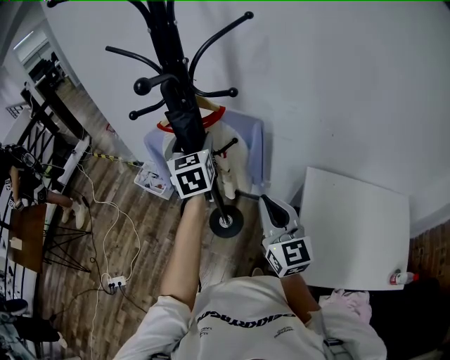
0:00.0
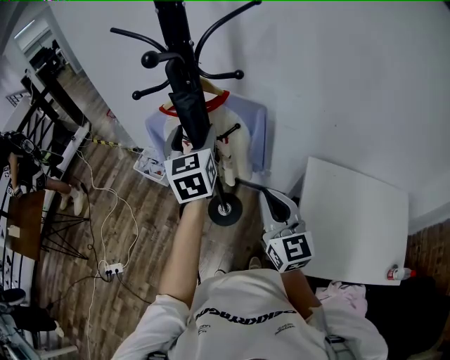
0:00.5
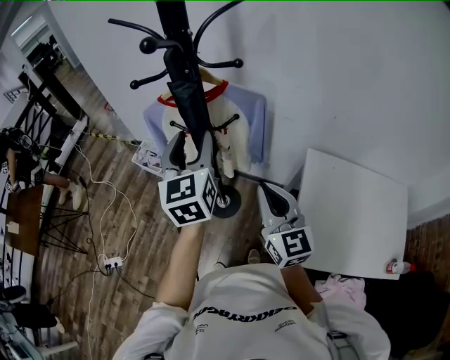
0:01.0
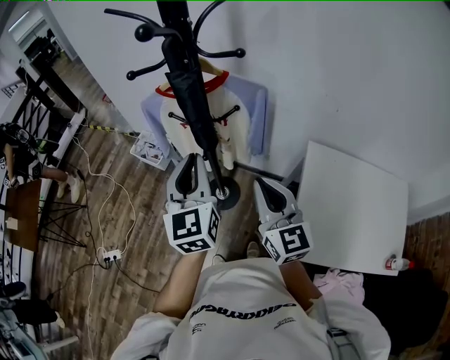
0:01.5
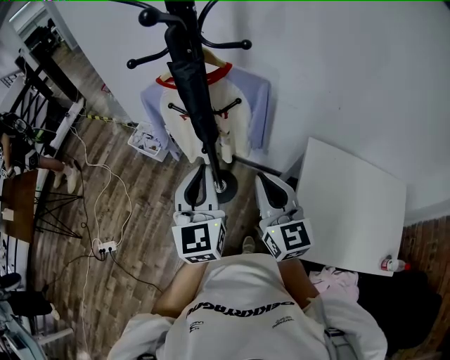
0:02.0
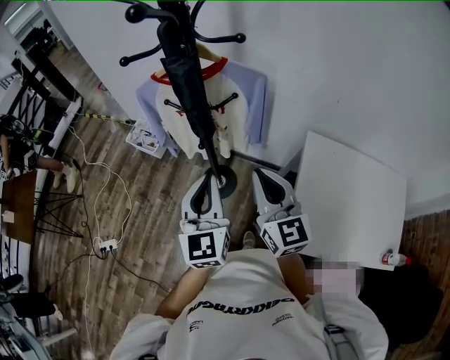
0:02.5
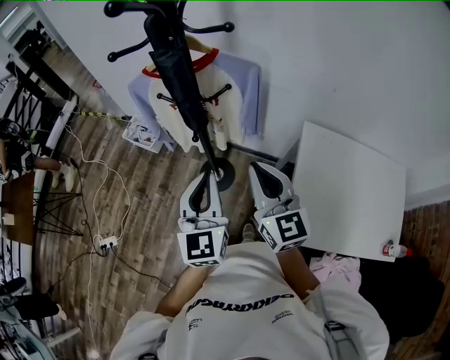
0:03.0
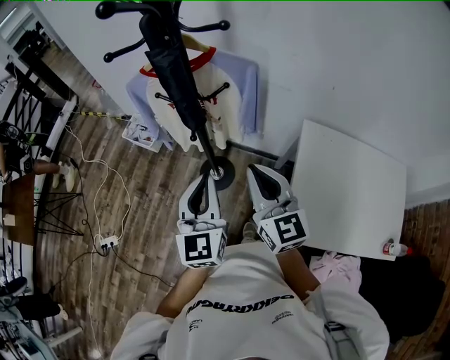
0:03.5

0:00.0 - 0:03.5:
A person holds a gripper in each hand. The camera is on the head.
0:00.0 - 0:02.0: The left gripper moves backward, roughly 20 cm, and closes up.
0:02.0 - 0:03.5: The left gripper ends up about 5 cm from where it was.

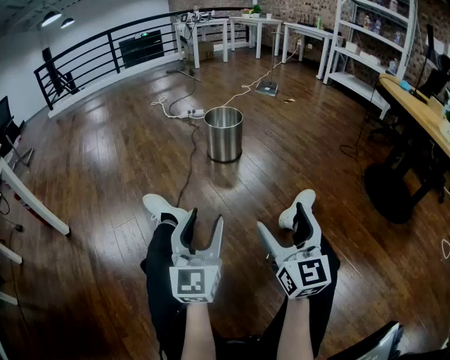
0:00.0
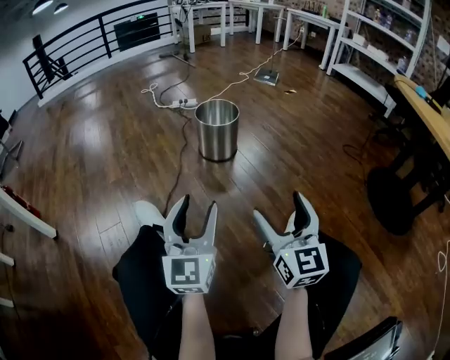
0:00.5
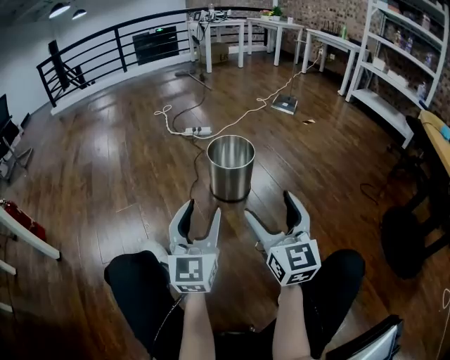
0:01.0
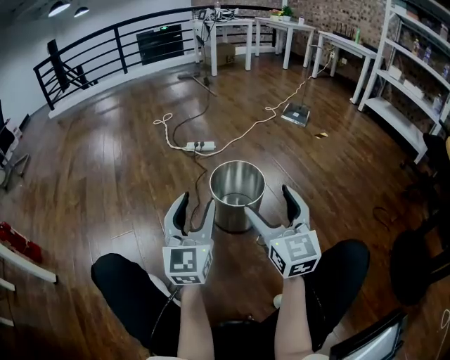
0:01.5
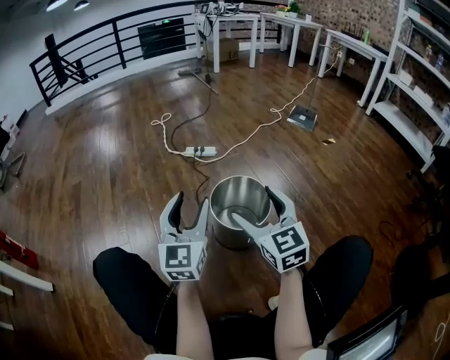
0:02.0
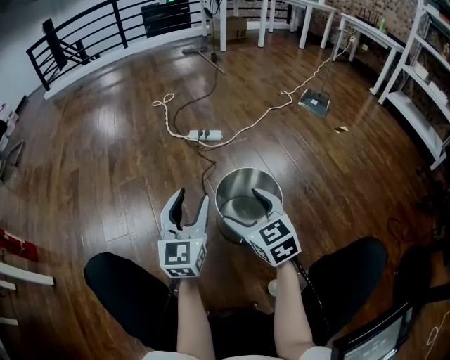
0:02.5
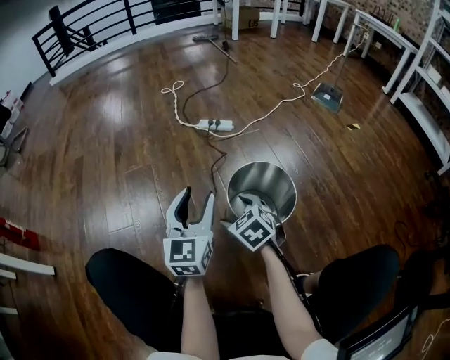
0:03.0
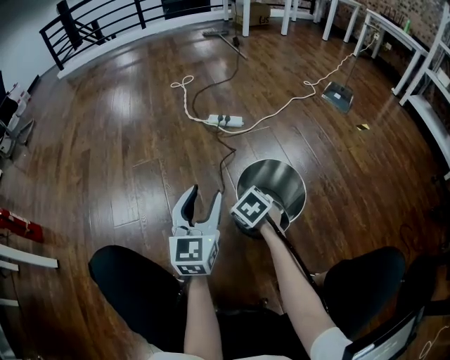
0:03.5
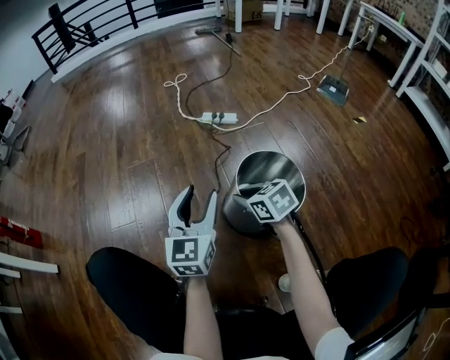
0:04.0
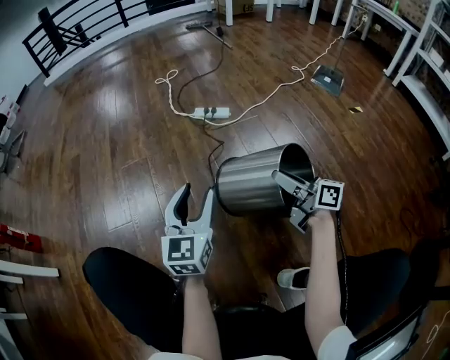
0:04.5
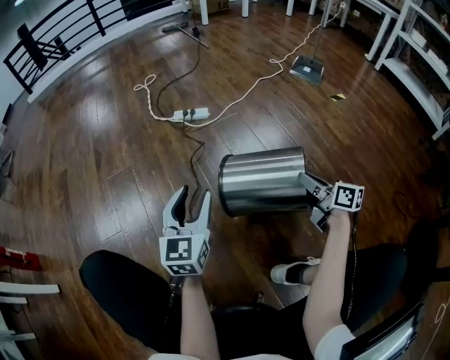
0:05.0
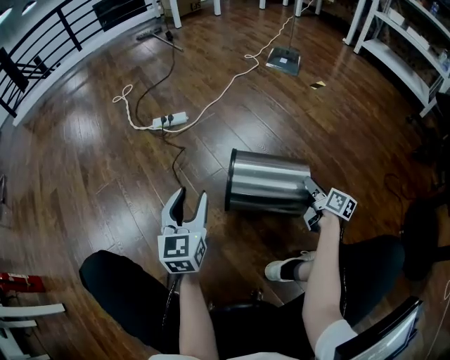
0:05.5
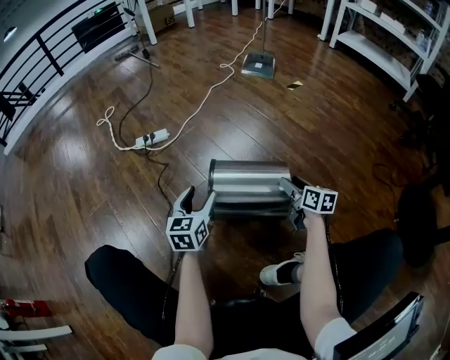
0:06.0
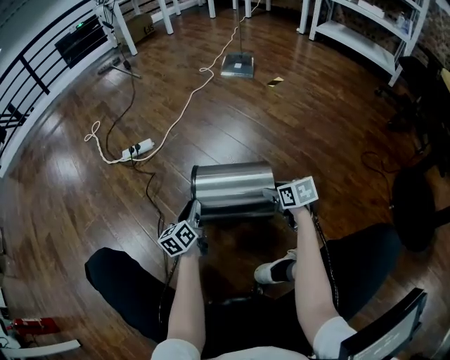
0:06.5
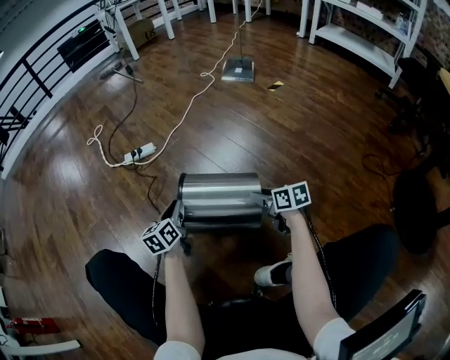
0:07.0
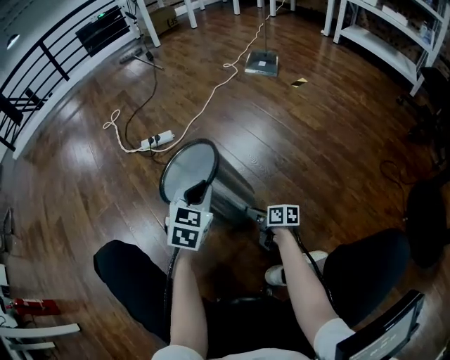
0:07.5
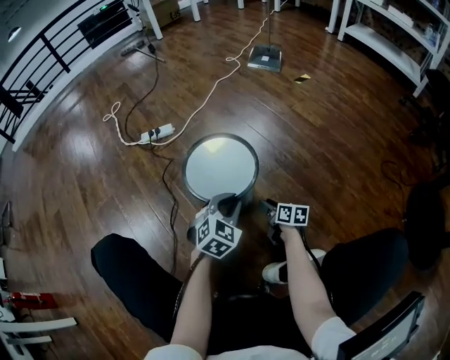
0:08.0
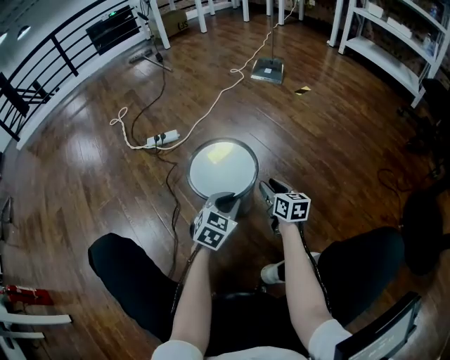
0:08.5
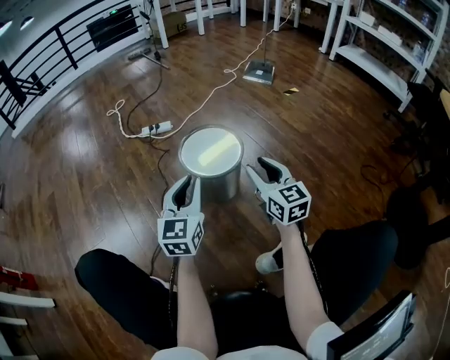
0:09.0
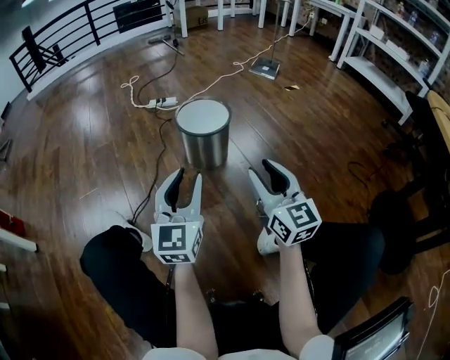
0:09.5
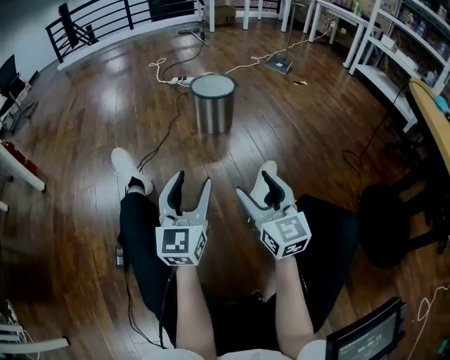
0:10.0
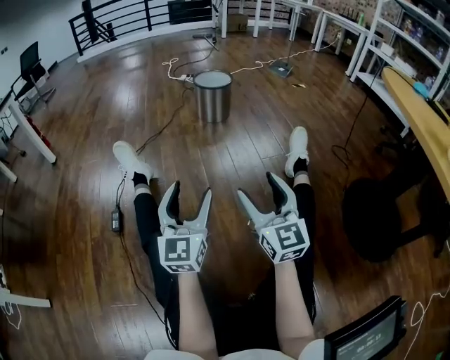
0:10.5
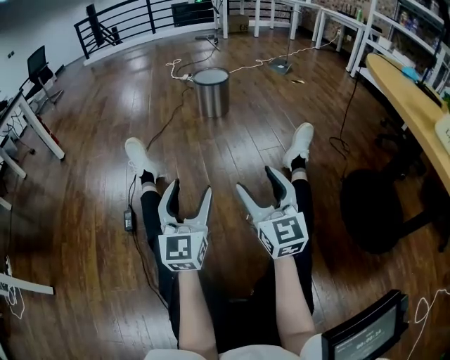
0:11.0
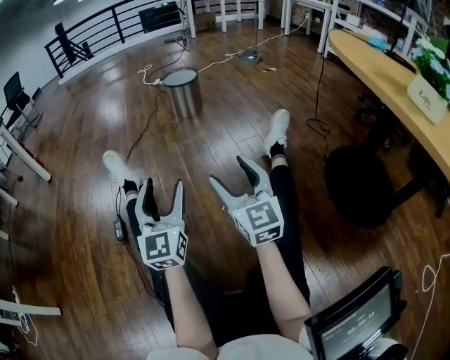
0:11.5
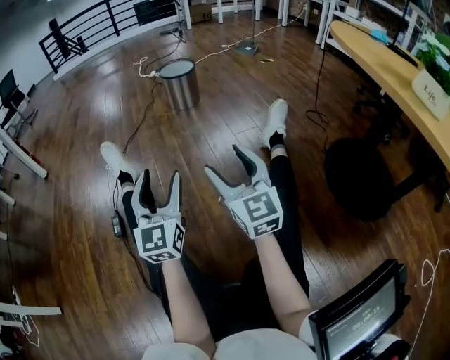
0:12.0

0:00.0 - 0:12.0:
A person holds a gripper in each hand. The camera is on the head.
0:00.0 - 0:02.0: The two grippers travel together, forward, roughly 60 cm. The right gripper swivels approximately 30 degrees.
0:02.0 - 0:04.0: The left gripper travels downward and forward by roughly 10 cm; the right gripper goes approximately 25 cm downward and forward, tips its fingers downward by some 30 degrees, and closes up.
0:04.0 - 0:06.0: The left gripper ends up about 25 cm from where it was, and turns by approximately 30 degrees; the right gripper ends up roughly 40 cm from where it was, turns by roughly 60 degrees, and opens.
0:06.0 - 0:08.0: The left gripper heads to the right and backward, covering about 10 cm, swivels about 40 degrees, and closes its fingers; the right gripper goes some 15 cm downward and to the left.
0:08.0 - 0:10.0: The pair of grippers is taken about 50 cm. The left gripper tilts its fingers approximately 40 degrees upward, and opens. The right gripper twists some 60 degrees counterclockwise, seen from behind, and opens its fingers.
0:10.0 - 0:12.0: The grippers both shift backward by some 25 cm.

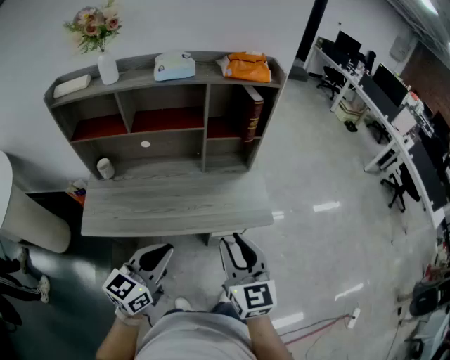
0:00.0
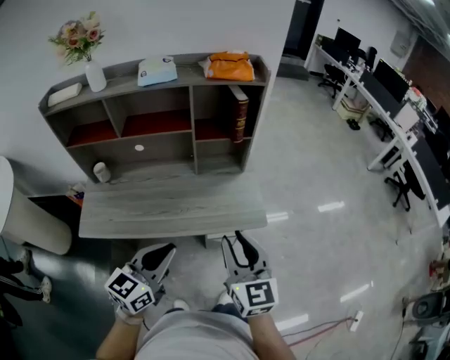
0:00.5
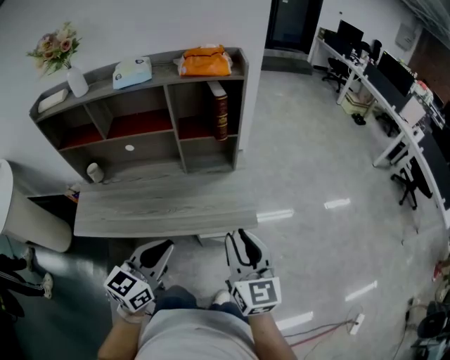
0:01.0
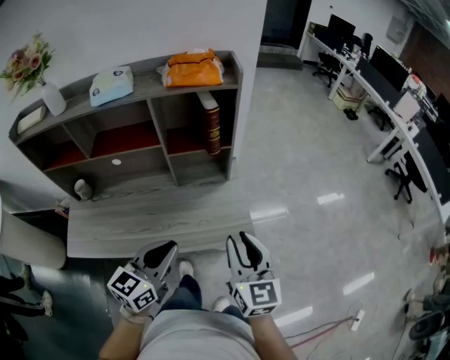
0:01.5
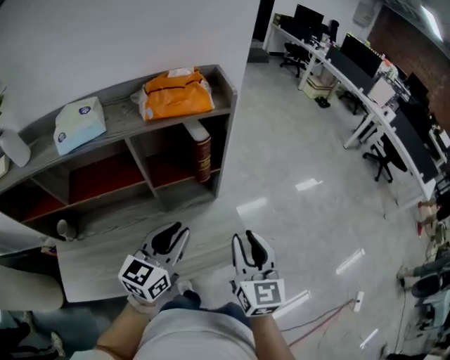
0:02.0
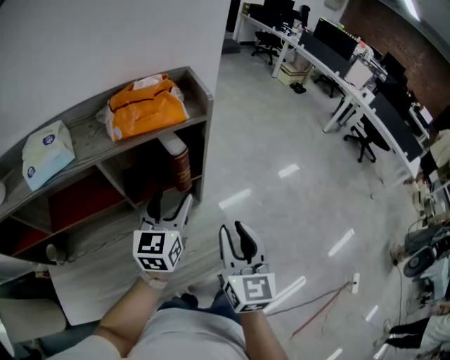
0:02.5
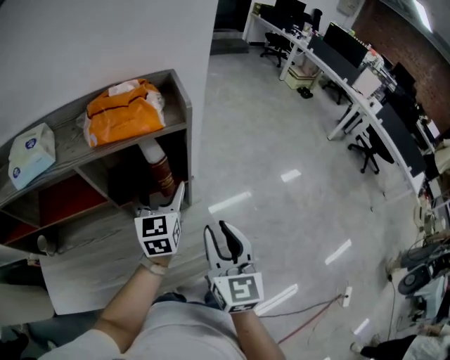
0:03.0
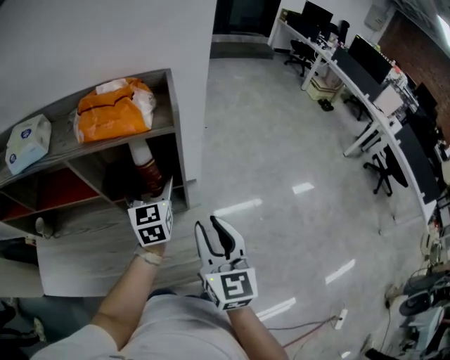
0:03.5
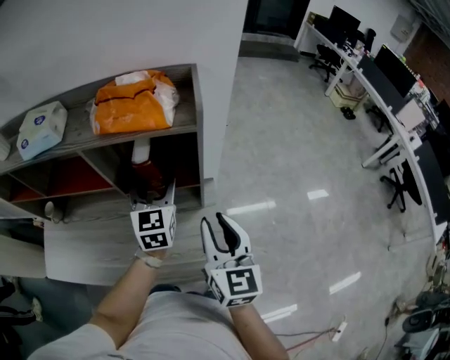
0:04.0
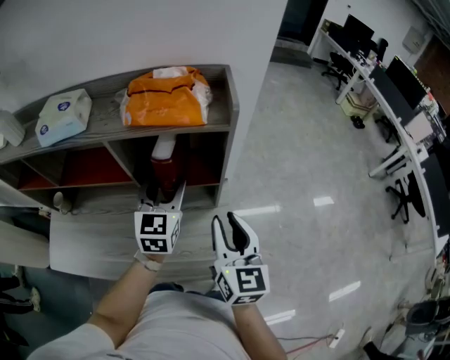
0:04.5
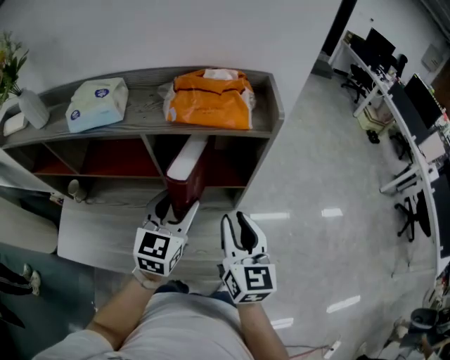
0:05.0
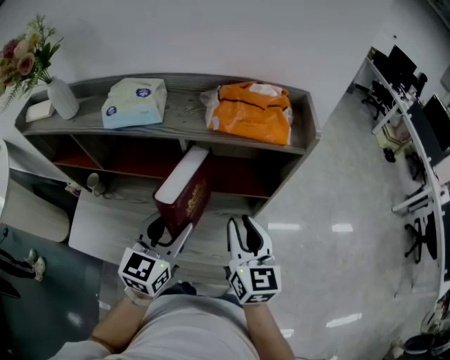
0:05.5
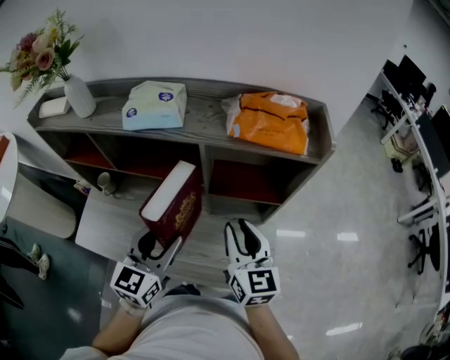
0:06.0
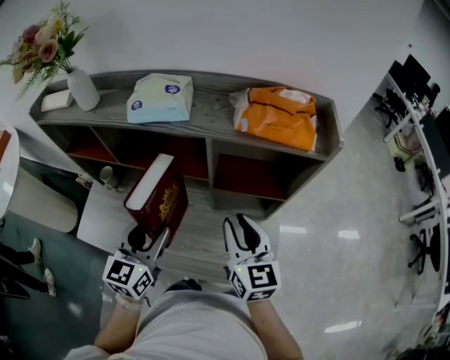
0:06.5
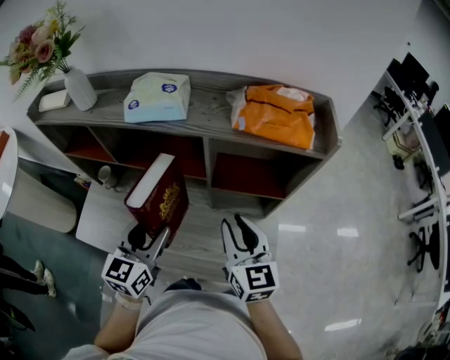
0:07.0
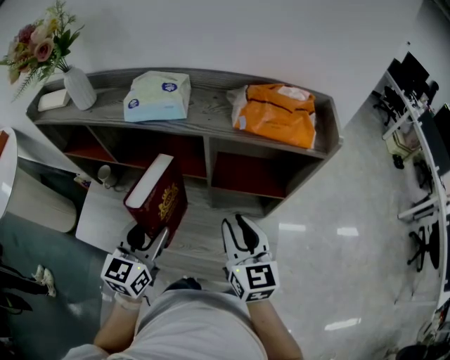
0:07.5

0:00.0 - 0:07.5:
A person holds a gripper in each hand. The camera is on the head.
0:00.0 - 0:02.0: The right gripper shifts approximately 30 cm forward and to the right; the left gripper is displaced forward by approximately 35 cm.
0:02.0 - 0:04.0: The right gripper shifts by some 15 cm; the left gripper changes place by approximately 20 cm, changes its angle by about 40 degrees, and opens.
0:04.0 - 0:05.5: The left gripper is displaced backward and to the left by about 20 cm. Meanwhile the right gripper travels to the left by roughly 15 cm.
0:05.5 - 0:07.5: The right gripper goes some 5 cm to the left. The left gripper goes some 10 cm to the left.

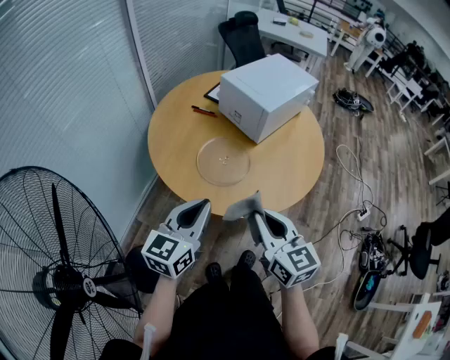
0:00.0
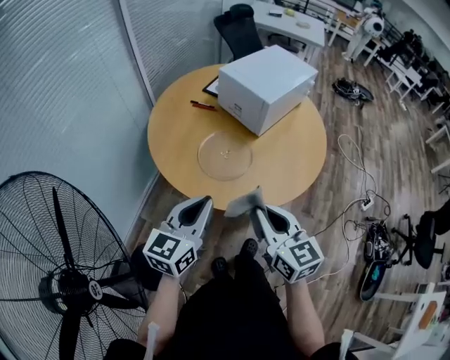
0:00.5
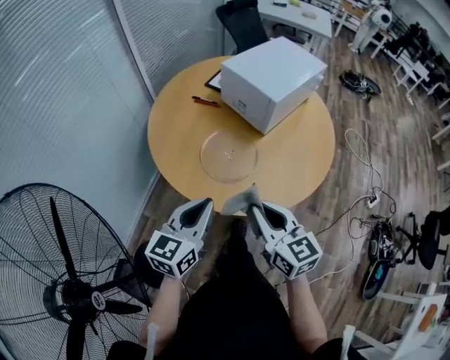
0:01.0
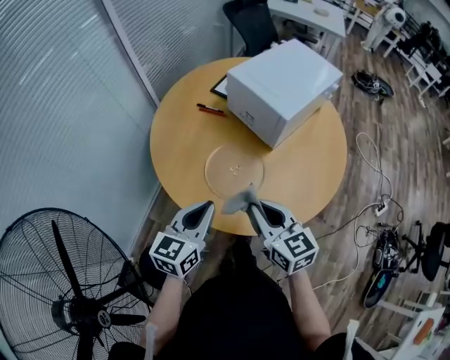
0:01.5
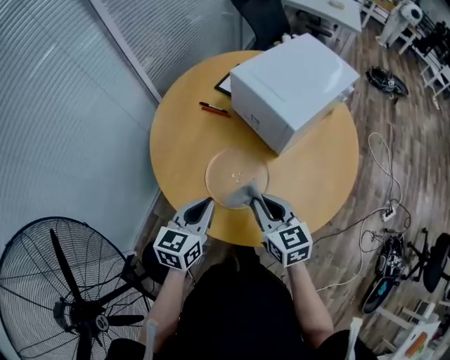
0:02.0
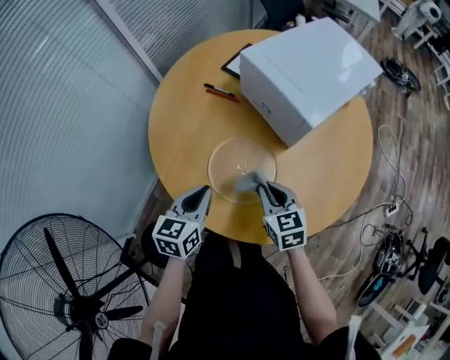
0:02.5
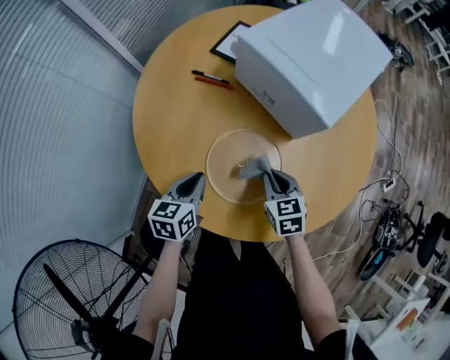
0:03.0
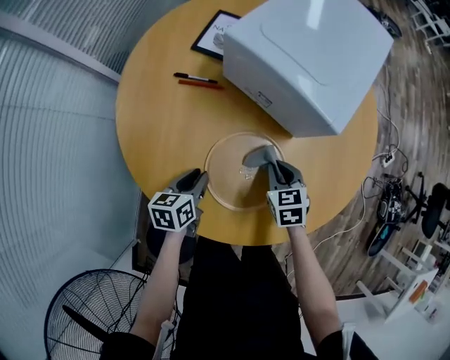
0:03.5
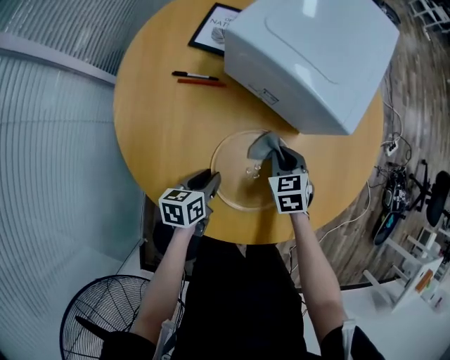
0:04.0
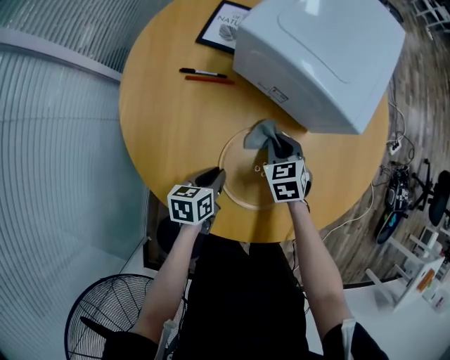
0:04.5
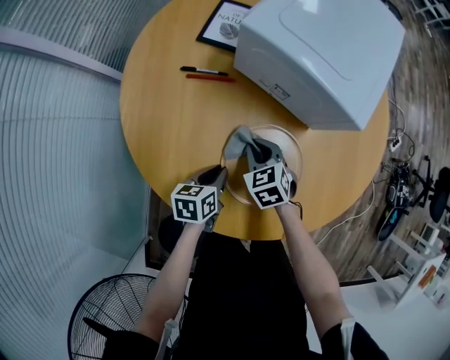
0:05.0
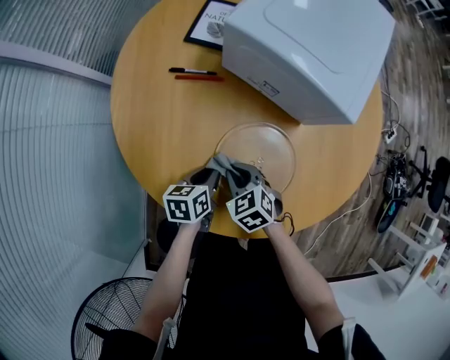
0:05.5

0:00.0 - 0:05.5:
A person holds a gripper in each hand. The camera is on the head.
0:00.0 - 0:02.0: The grippers both shift forward and downward by some 25 cm.
0:02.0 - 0:03.5: The two grippers go approximately 25 cm downward and forward. The left gripper rotates approximately 30 degrees. The right gripper swivels about 30 degrees.
0:03.5 - 0:05.5: The right gripper is displaced to the left and backward by some 15 cm.
